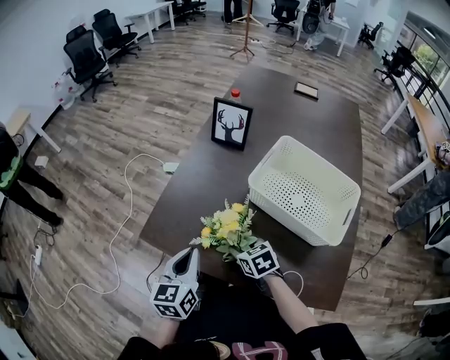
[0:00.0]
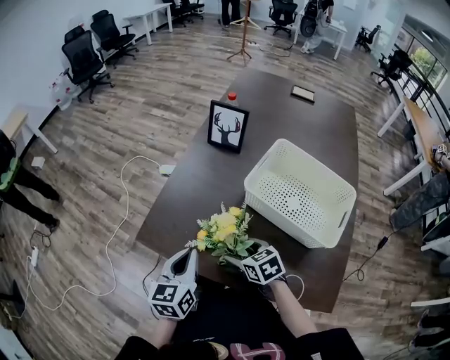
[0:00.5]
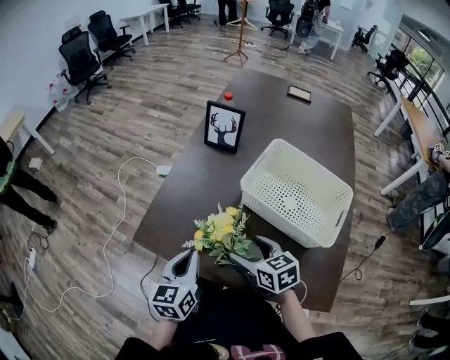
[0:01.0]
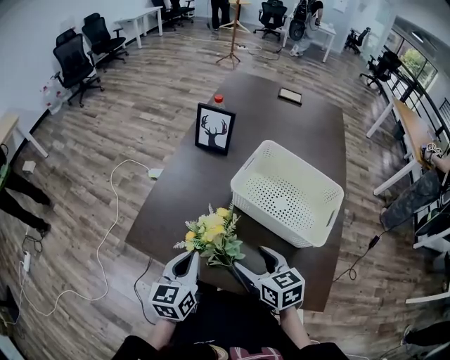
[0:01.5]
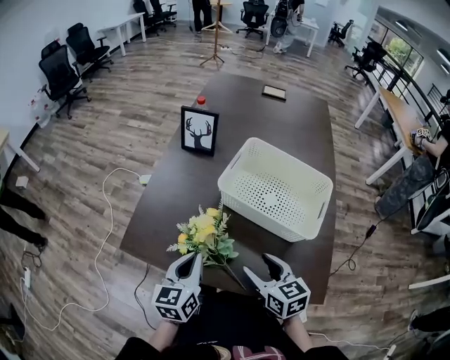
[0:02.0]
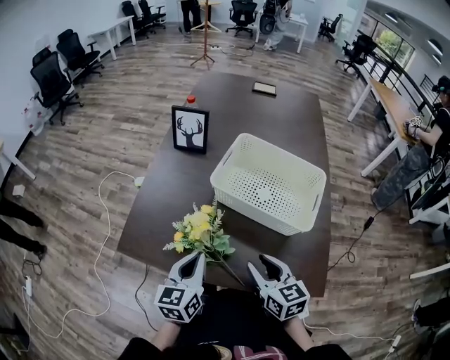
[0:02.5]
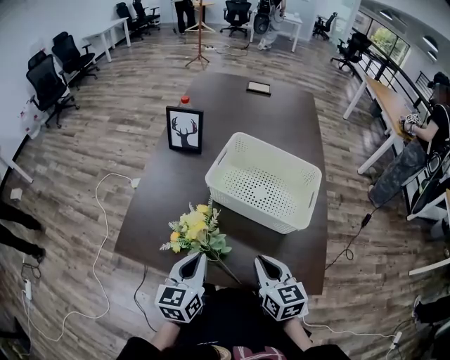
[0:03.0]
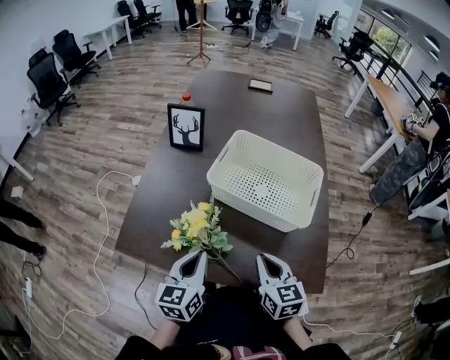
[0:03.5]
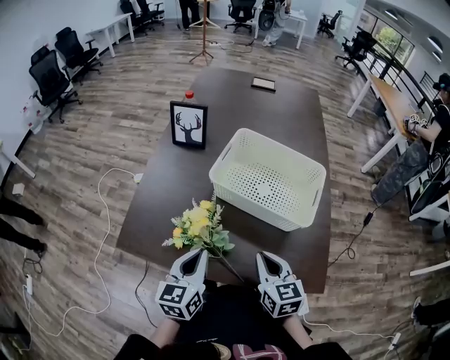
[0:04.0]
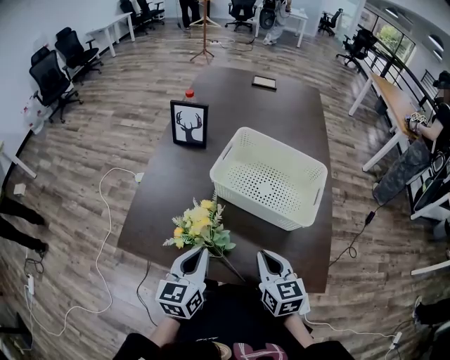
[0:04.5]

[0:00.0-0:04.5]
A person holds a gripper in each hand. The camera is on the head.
0:00.0 to 0:02.0: The right gripper is displaced upward, to the right and backward by approximately 20 cm, and turns by roughly 30 degrees; the left gripper goes about 5 cm to the right.
0:02.0 to 0:04.5: The right gripper closes up.

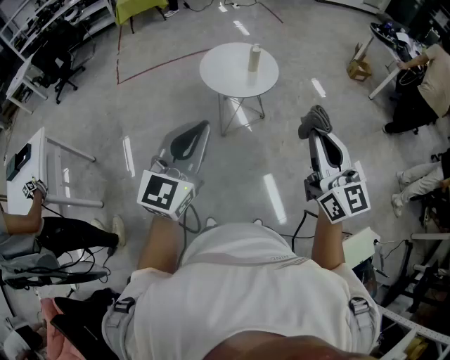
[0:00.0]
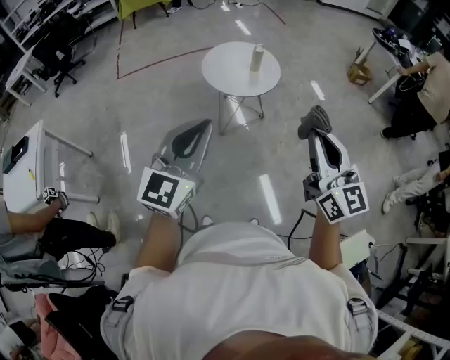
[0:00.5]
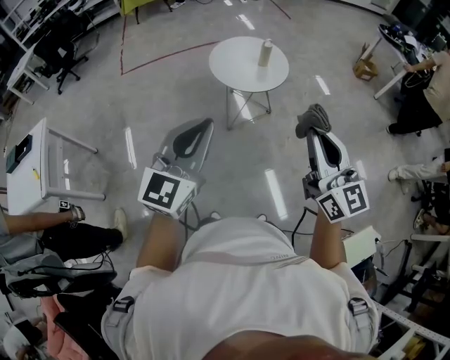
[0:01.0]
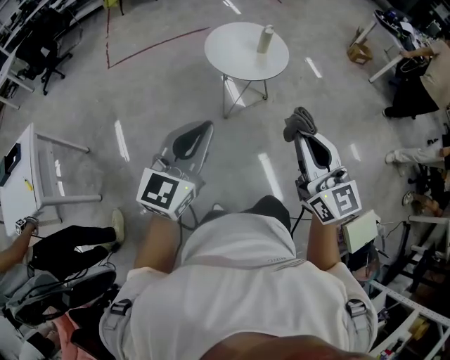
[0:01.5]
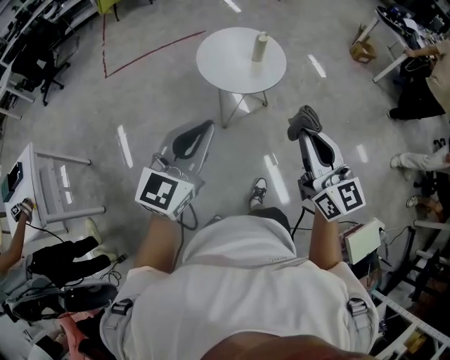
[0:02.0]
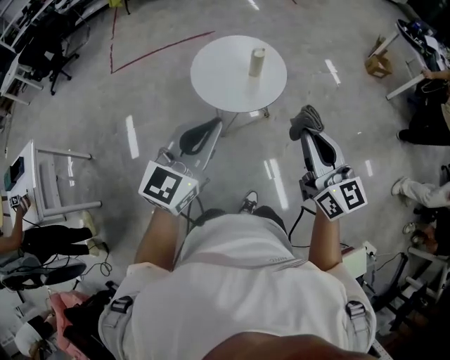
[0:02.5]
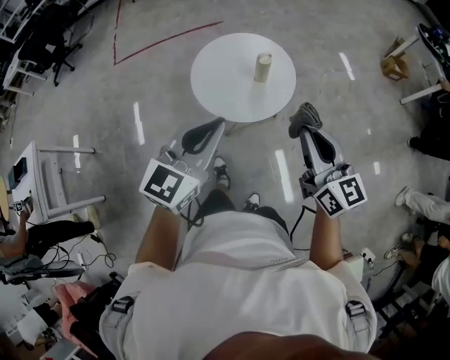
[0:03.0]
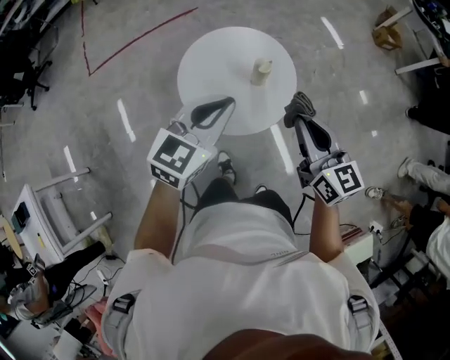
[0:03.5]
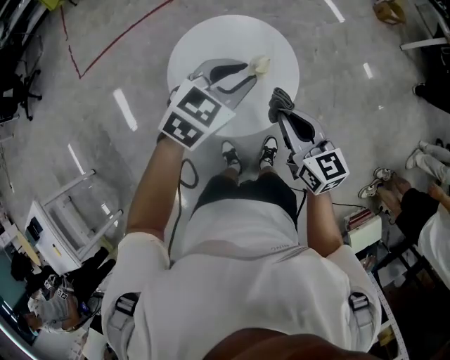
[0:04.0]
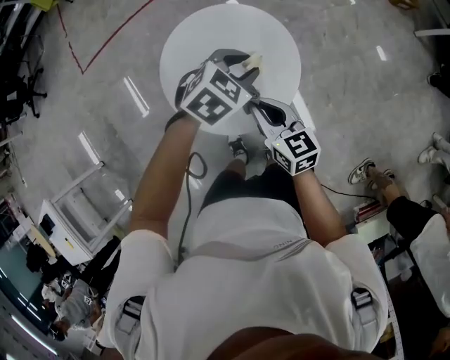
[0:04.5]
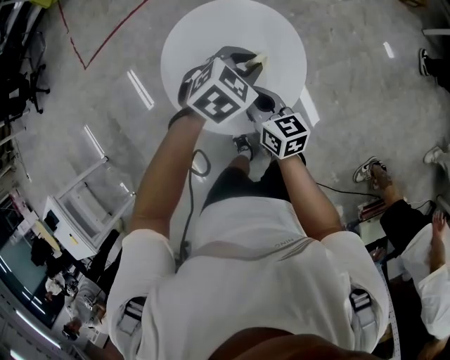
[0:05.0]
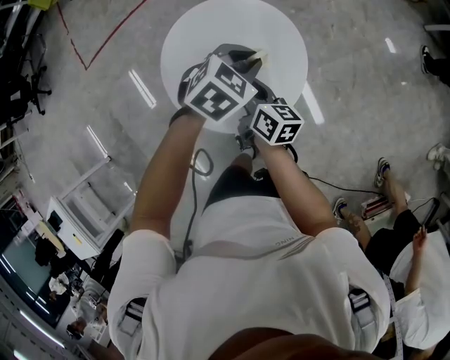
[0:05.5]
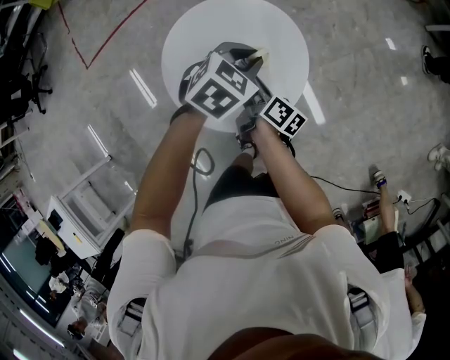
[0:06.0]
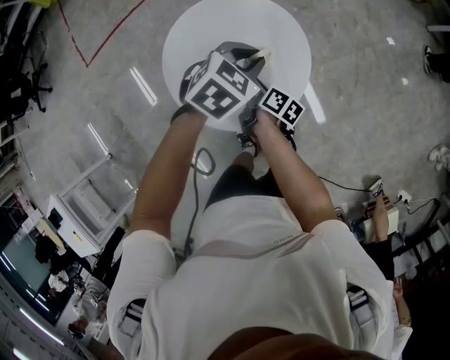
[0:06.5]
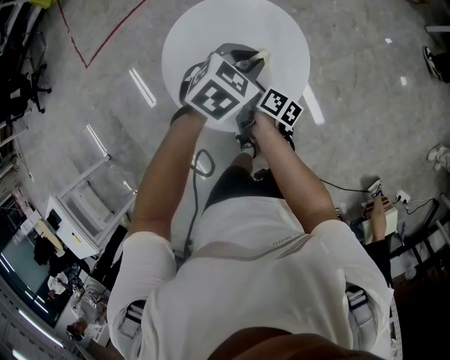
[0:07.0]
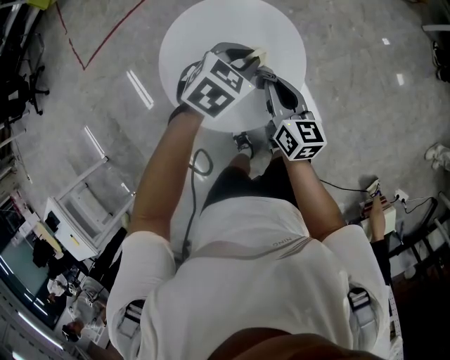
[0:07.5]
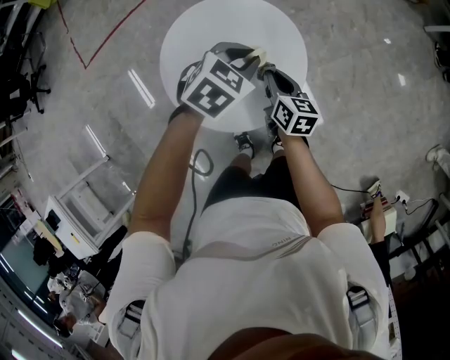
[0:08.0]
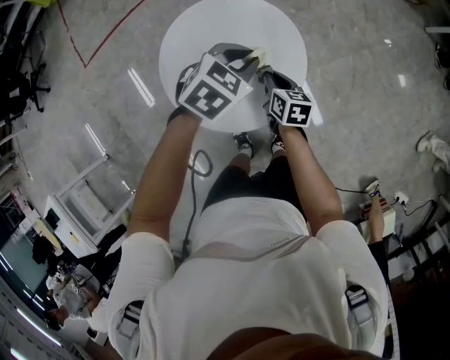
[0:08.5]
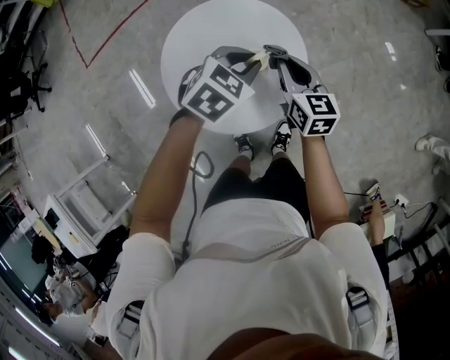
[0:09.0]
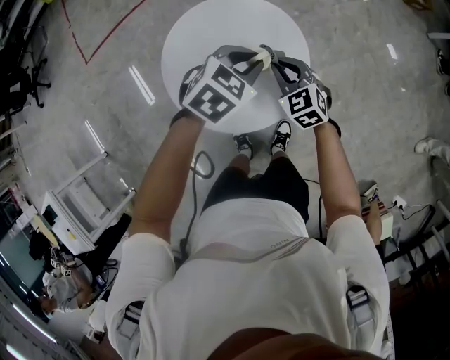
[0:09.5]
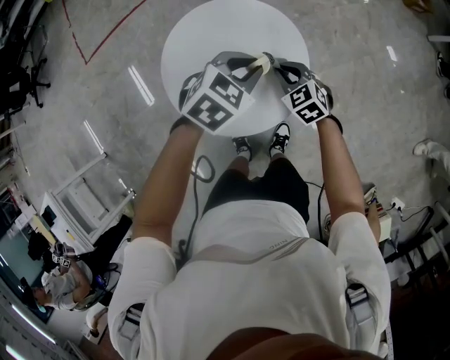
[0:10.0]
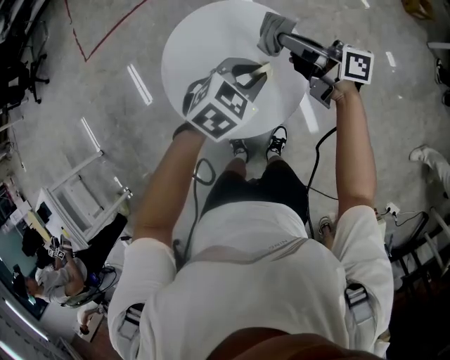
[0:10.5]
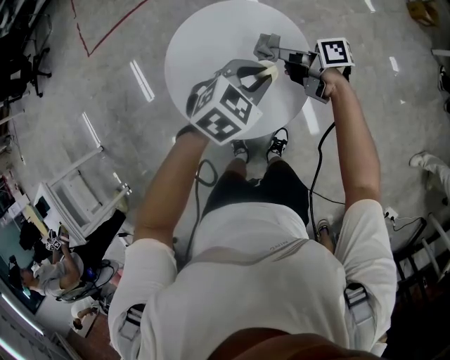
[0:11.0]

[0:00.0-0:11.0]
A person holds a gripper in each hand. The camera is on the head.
0:00.0 to 0:02.0: The right gripper goes some 15 cm forward, to the left and downward, while the left gripper moves forward and downward, about 15 cm.
0:02.0 to 0:03.5: The pair of grippers is taken forward, about 50 cm. The left gripper turns by about 20 degrees.
0:03.5 to 0:05.5: The left gripper is displaced downward, forward and to the right by some 30 cm, and points its fingers about 30 degrees further downward; the right gripper is displaced downward, forward and to the left by some 30 cm, and changes its angle by some 40 degrees.
0:05.5 to 0:07.5: The right gripper is displaced to the right by some 10 cm, moves roughly 10 cm downward and comes back, and rotates roughly 20 degrees.
0:07.5 to 0:09.0: The right gripper is displaced forward by about 5 cm, and travels downward and back again, approximately 10 cm each way.
0:09.0 to 0:11.0: The right gripper moves up and down over roughly 15 cm, changing direction 2 times, and rotates approximately 70 degrees.

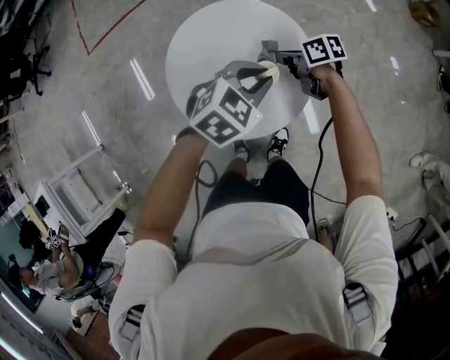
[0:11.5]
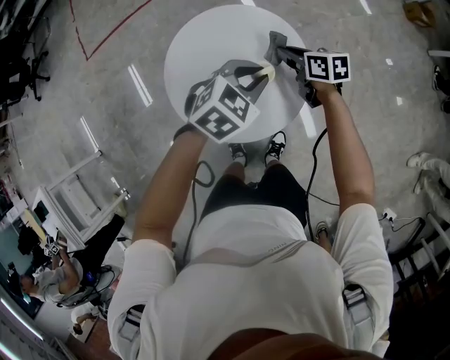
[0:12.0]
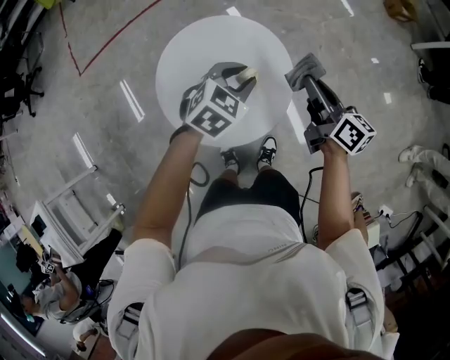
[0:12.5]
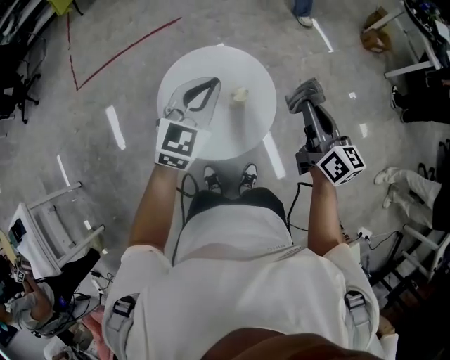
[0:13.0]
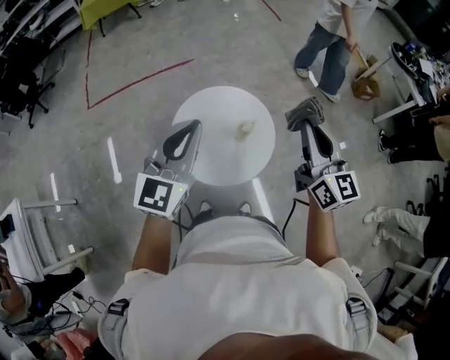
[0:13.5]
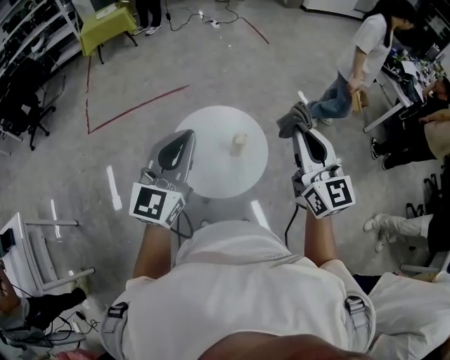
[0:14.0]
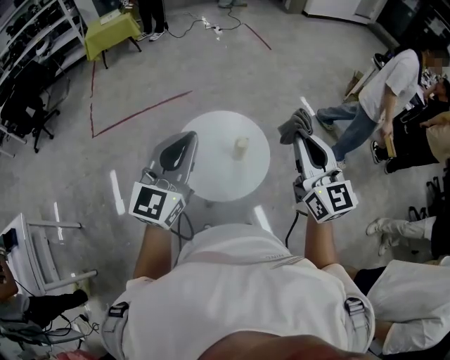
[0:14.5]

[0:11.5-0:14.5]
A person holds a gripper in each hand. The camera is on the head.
0:11.5 to 0:13.0: The right gripper moves upward, some 30 cm, and changes its angle by about 60 degrees, while the left gripper is displaced upward by roughly 20 cm, and swivels approximately 40 degrees.
0:13.0 to 0:14.5: The left gripper moves upward, backward and to the left, roughly 30 cm, and turns by about 20 degrees, while the right gripper goes roughly 25 cm upward and backward, and turns by approximately 40 degrees.

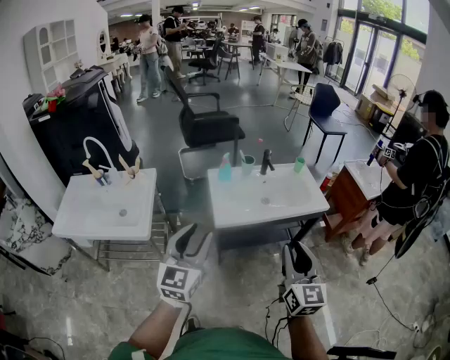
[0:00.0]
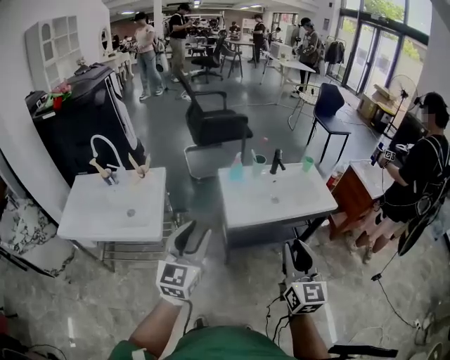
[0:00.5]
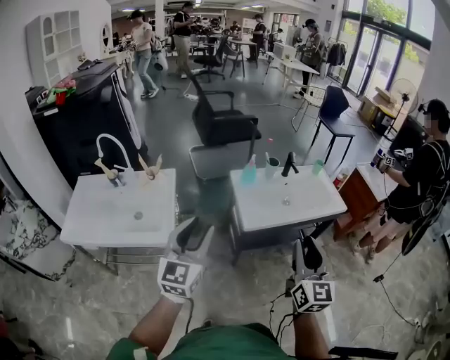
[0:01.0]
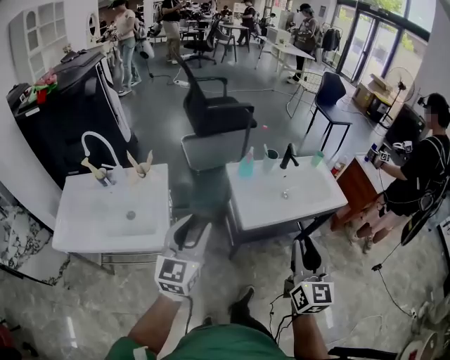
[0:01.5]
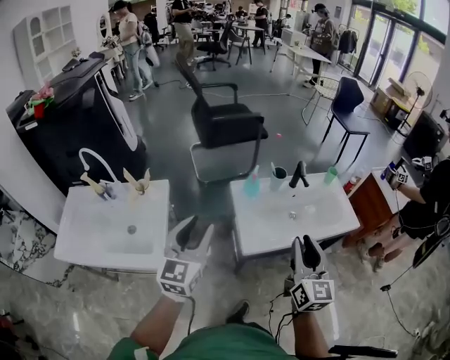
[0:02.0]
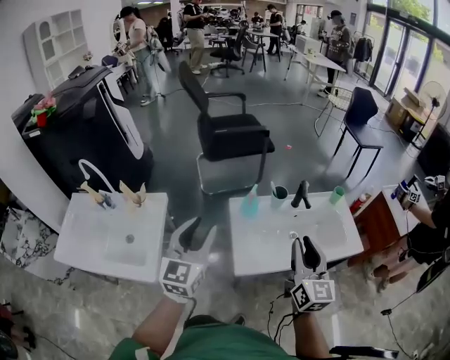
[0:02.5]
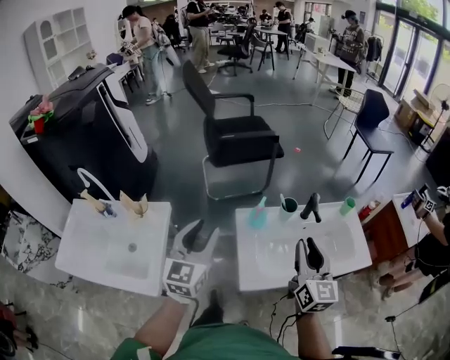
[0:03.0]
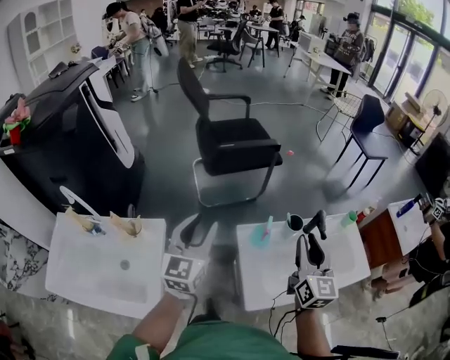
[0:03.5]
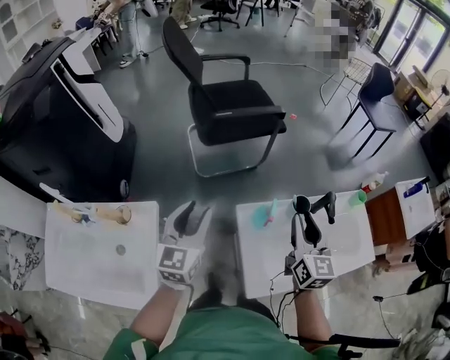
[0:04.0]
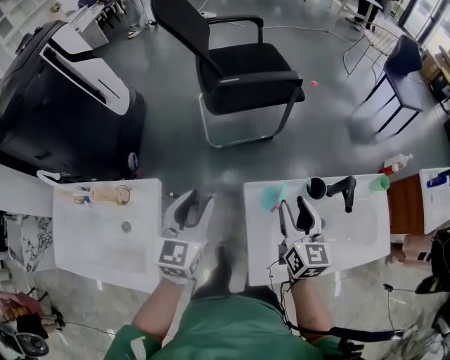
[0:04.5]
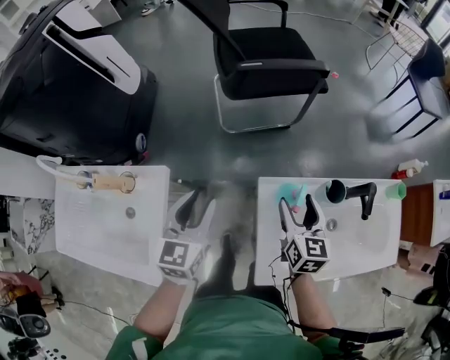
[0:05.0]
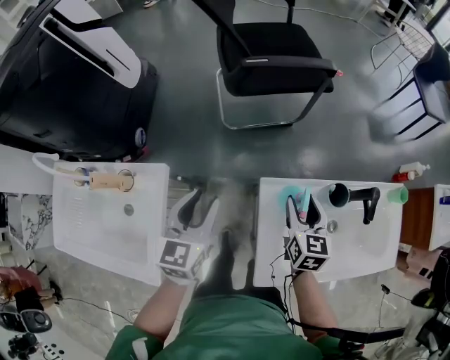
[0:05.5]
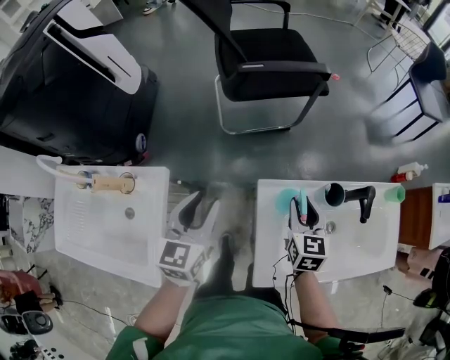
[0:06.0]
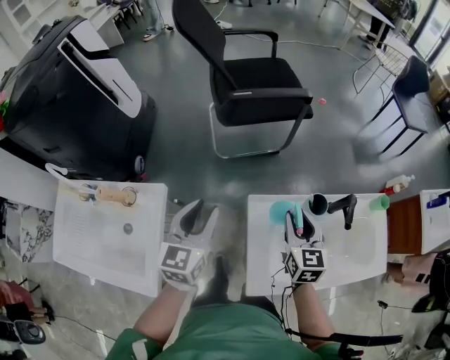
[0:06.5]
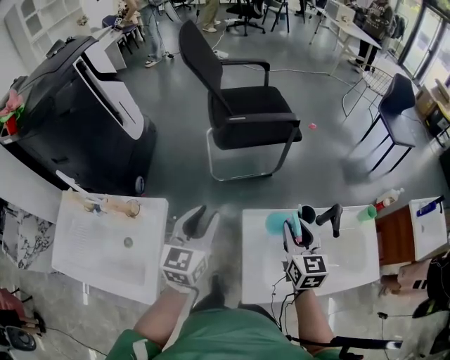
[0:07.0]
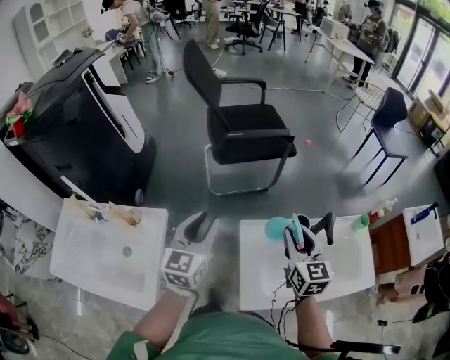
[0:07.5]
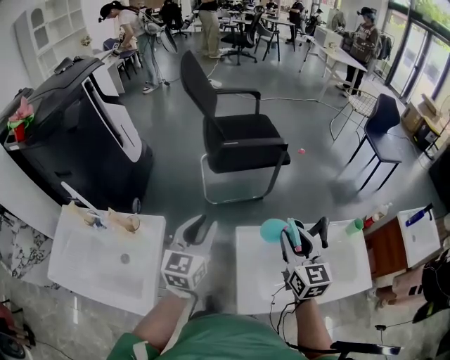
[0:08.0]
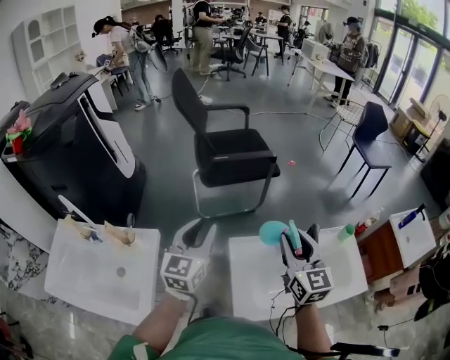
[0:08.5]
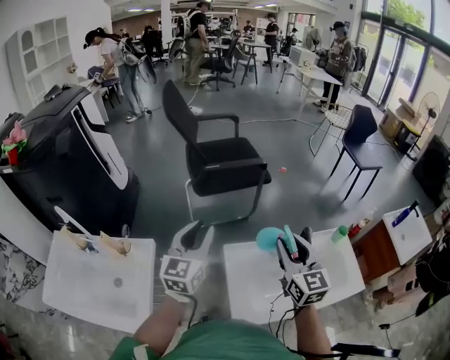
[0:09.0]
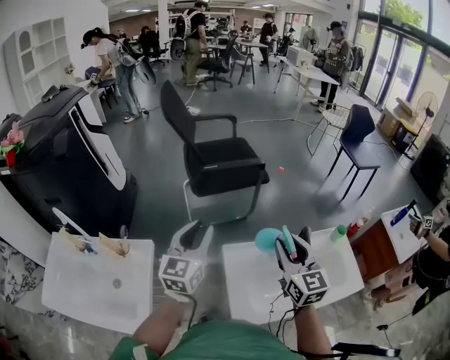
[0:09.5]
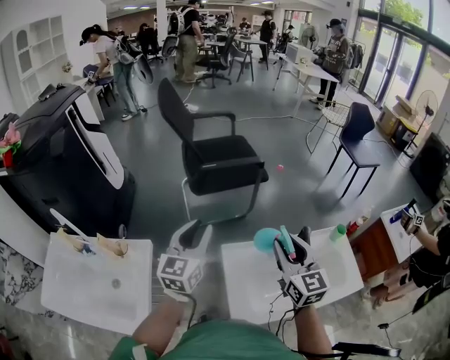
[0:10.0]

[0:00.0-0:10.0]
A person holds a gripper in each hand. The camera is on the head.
0:00.0 to 0:02.0: The grippers both shift forward and to the left by roughly 30 cm.
0:02.0 to 0:04.0: The grippers both shift forward by roughly 35 cm.
0:04.0 to 0:06.0: The right gripper is displaced downward by approximately 15 cm, swivels some 20 degrees, and opens, then closes again, while the left gripper shifts roughly 10 cm downward.
0:06.0 to 0:08.0: The right gripper goes roughly 20 cm upward and backward, and rotates approximately 20 degrees; the left gripper is displaced upward by approximately 15 cm.
0:08.0 to 0:10.0: The left gripper moves roughly 5 cm. Meanwhile the right gripper goes approximately 5 cm upward.
